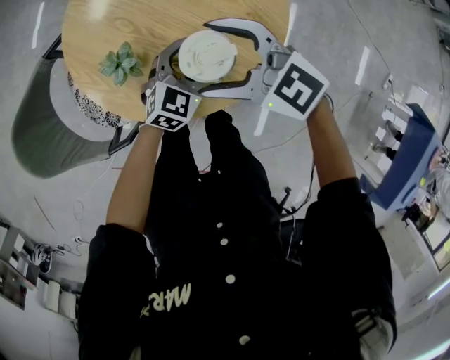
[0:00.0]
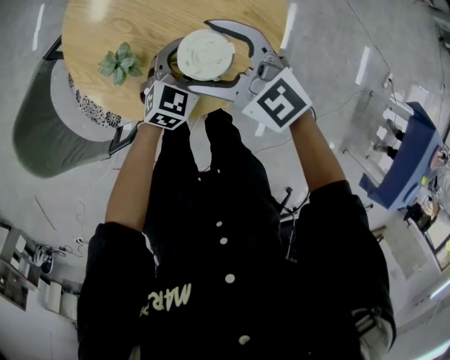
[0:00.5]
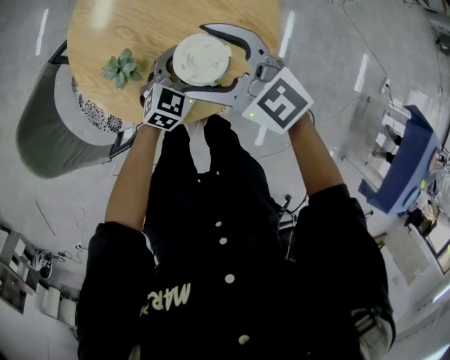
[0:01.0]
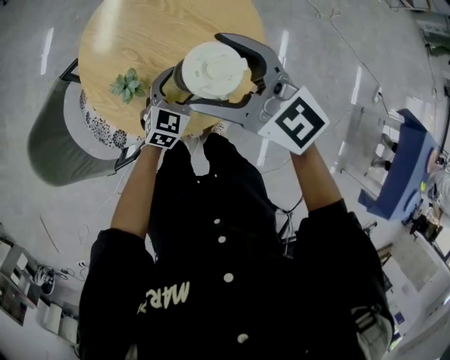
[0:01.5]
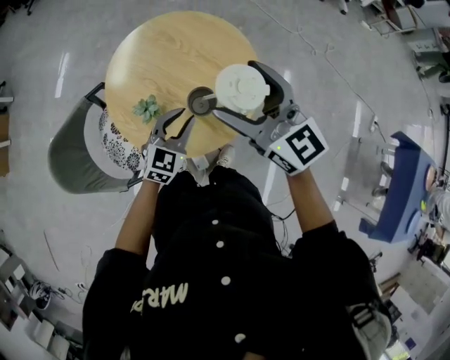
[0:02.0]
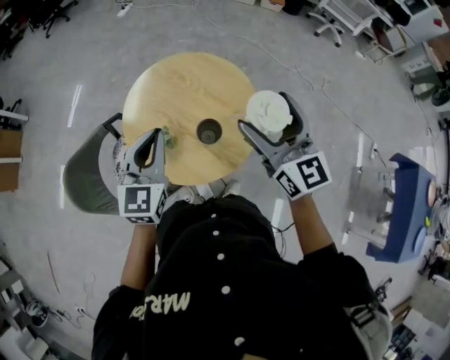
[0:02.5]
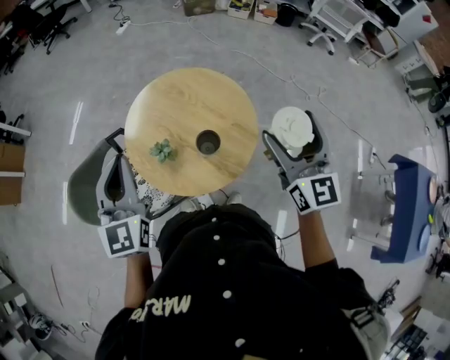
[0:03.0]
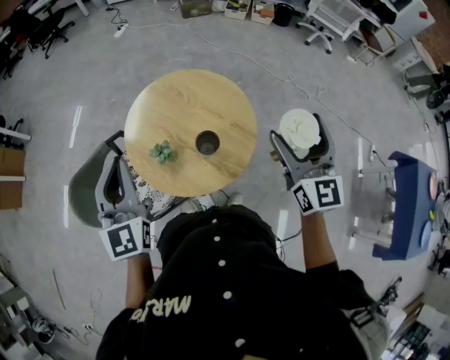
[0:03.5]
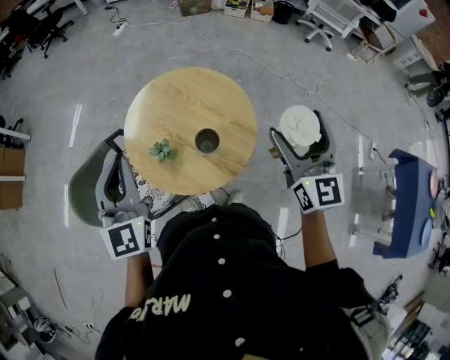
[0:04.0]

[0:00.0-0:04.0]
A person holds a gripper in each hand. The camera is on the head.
0:00.0 to 0:02.0: The two grippers go approximately 20 cm upward. The left gripper closes. The right gripper turns by about 40 degrees.
0:02.0 to 0:04.0: The left gripper goes roughly 35 cm upward and to the left, and changes its angle by roughly 40 degrees; the right gripper travels to the right, upward and backward by approximately 15 cm, and changes its angle by roughly 30 degrees.

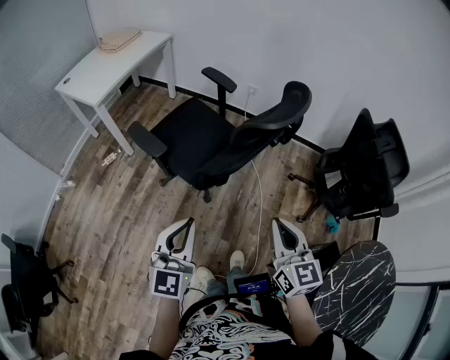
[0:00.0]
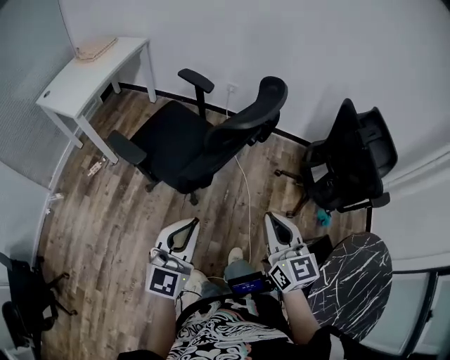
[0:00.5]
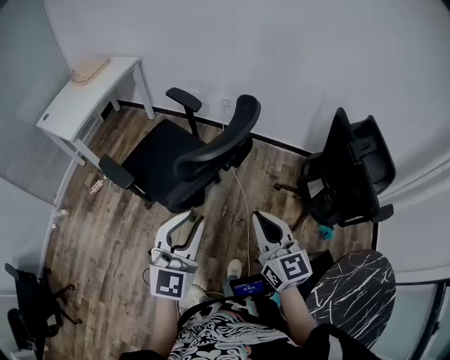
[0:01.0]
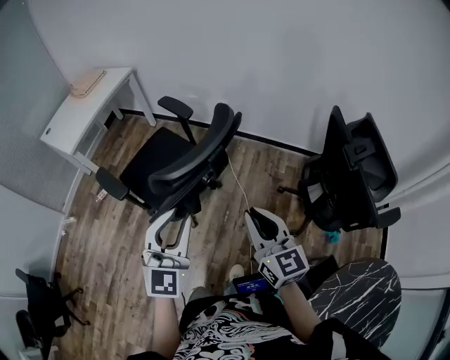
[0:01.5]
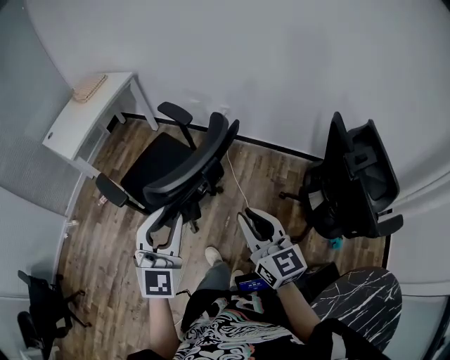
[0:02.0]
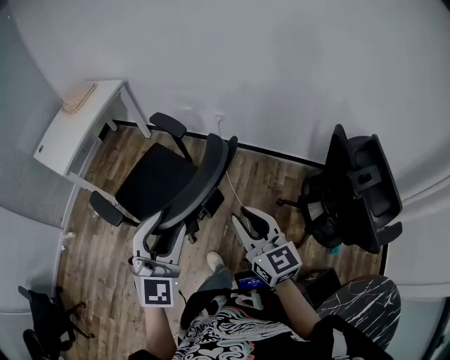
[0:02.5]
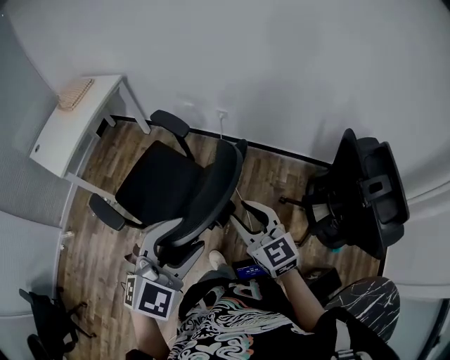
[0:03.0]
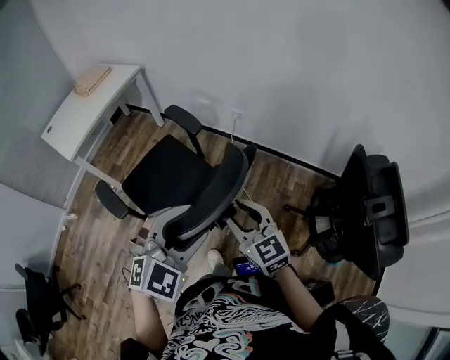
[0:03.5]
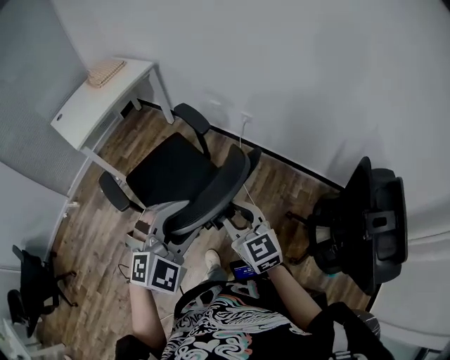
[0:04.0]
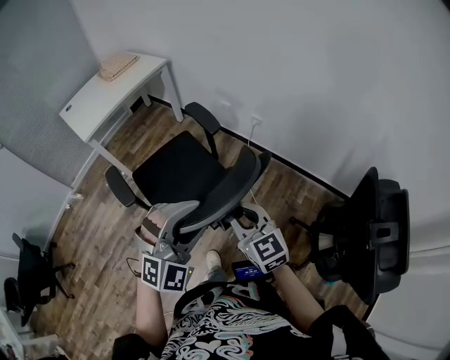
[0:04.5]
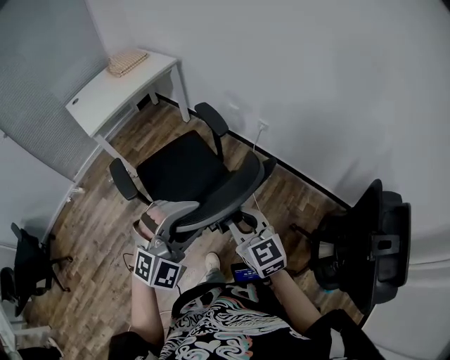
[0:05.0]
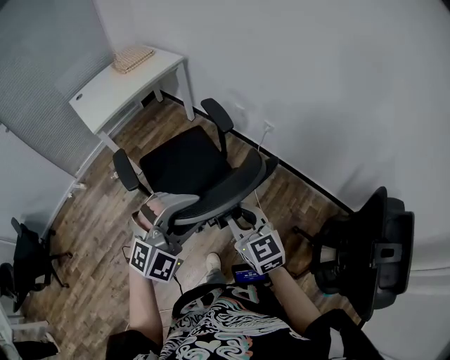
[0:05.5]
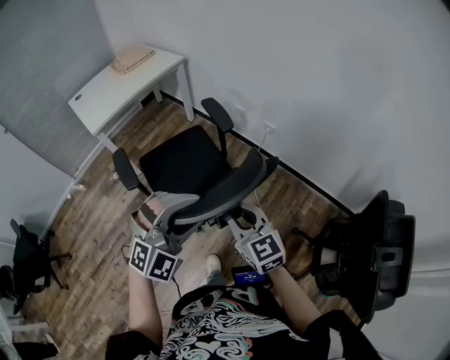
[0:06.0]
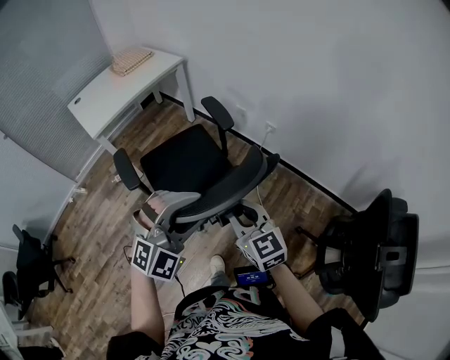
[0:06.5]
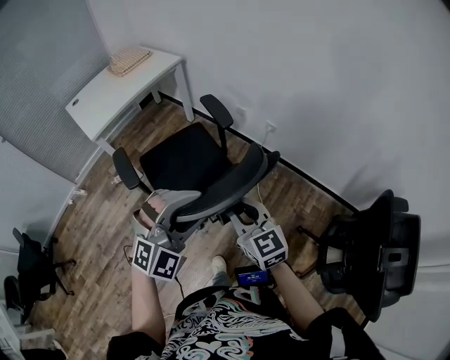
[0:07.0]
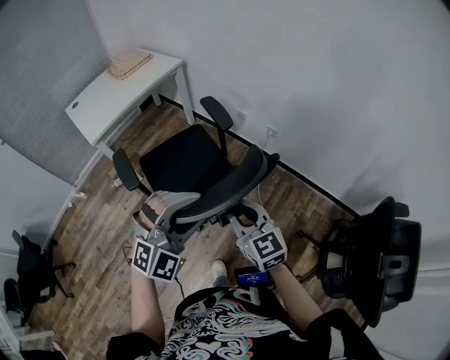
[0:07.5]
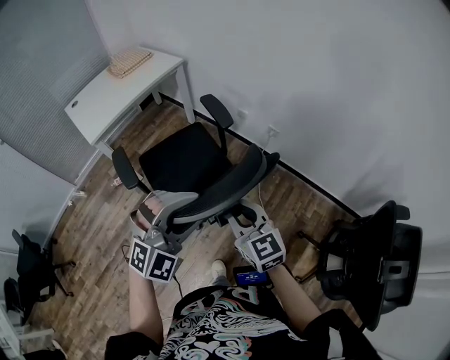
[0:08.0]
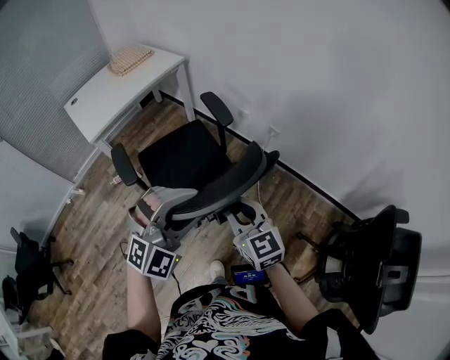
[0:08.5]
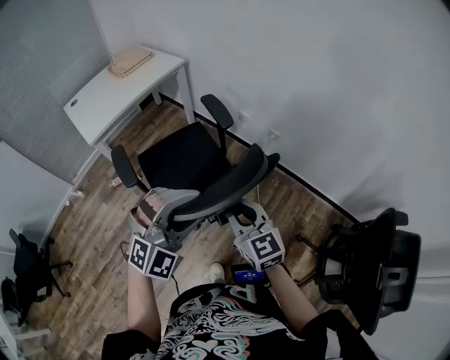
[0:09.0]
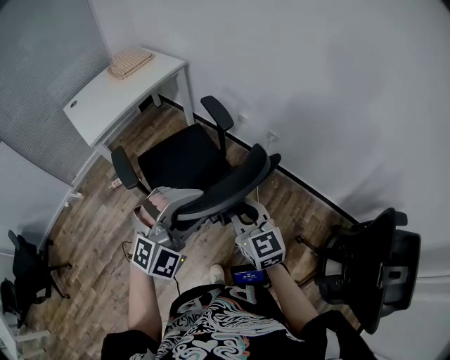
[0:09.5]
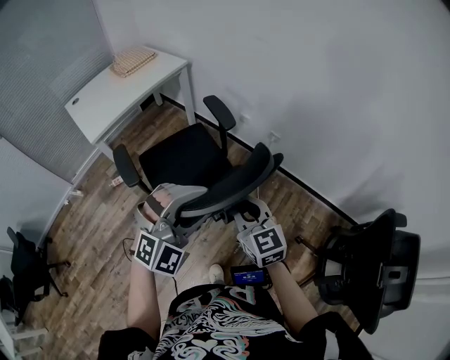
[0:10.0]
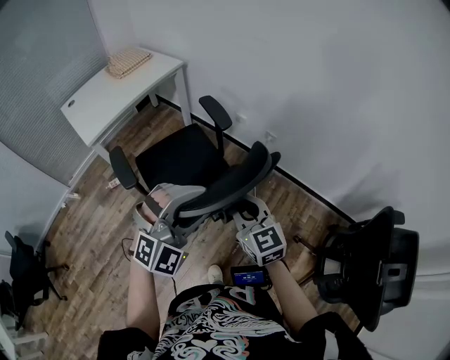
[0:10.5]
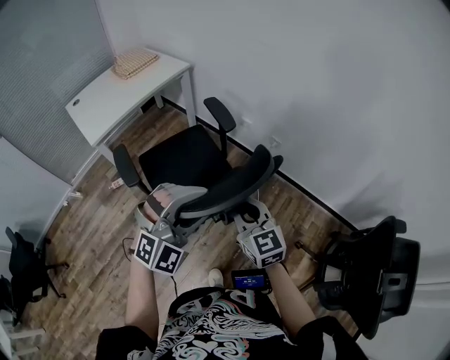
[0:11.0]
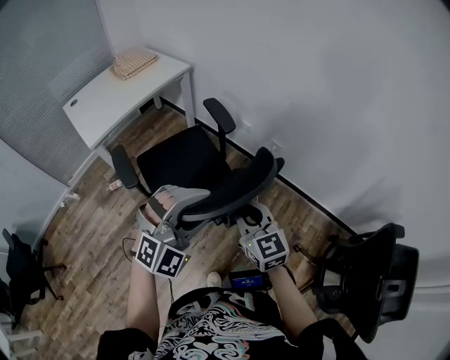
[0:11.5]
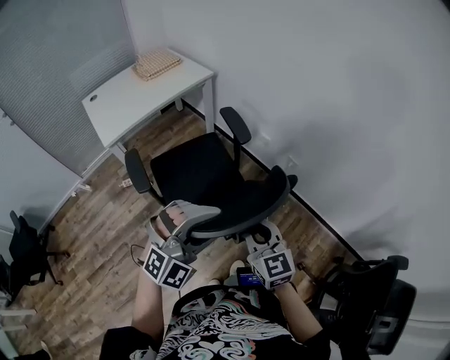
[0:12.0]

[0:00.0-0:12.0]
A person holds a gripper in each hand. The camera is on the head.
0:00.0 to 0:02.0: The right gripper travels forward and to the right by roughly 25 cm. The left gripper is displaced to the right and forward by some 25 cm, rotates about 20 degrees, and opens up.
0:02.0 to 0:04.0: The left gripper moves forward, some 10 cm, and changes its angle by approximately 30 degrees, while the right gripper is displaced forward and to the left by approximately 15 cm, and turns by approximately 20 degrees.
0:04.0 to 0:06.0: The right gripper moves to the left, about 5 cm. Meanwhile the left gripper goes about 5 cm forward.
0:06.0 to 0:08.0: The two grippers go about 5 cm forward.
0:08.0 to 0:10.0: The grippers make only small movements.
0:10.0 to 0:12.0: The two grippers go some 5 cm forward.

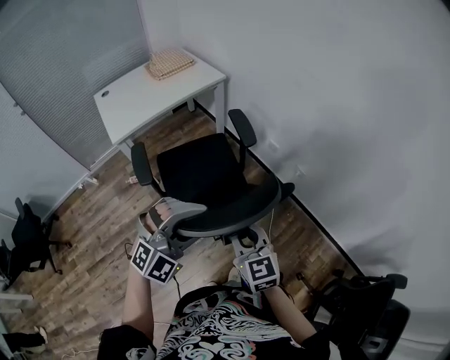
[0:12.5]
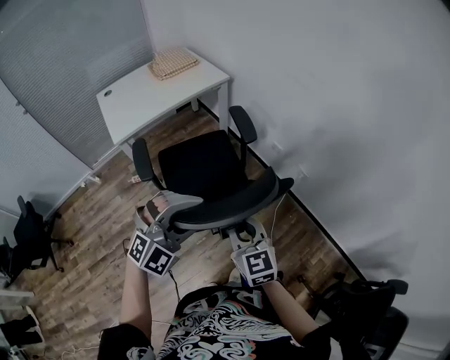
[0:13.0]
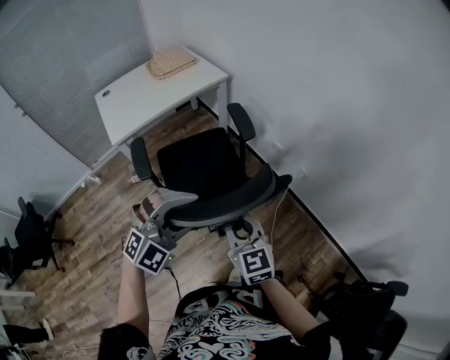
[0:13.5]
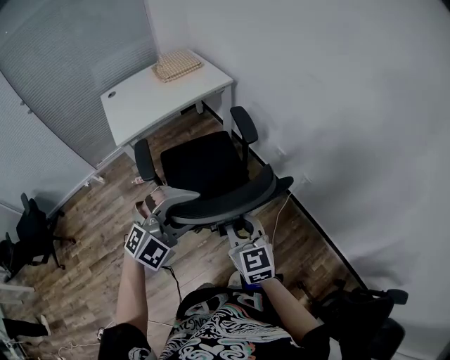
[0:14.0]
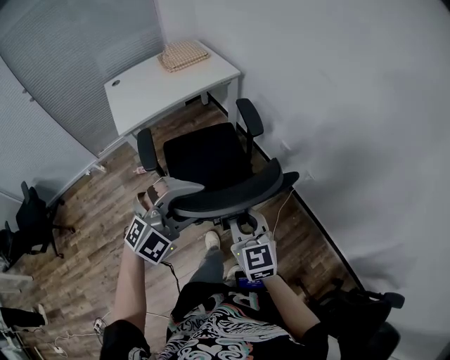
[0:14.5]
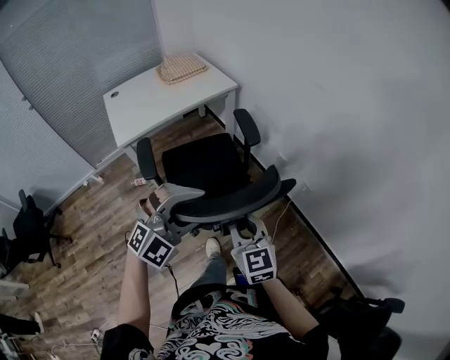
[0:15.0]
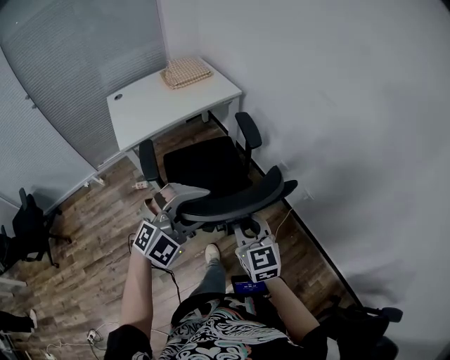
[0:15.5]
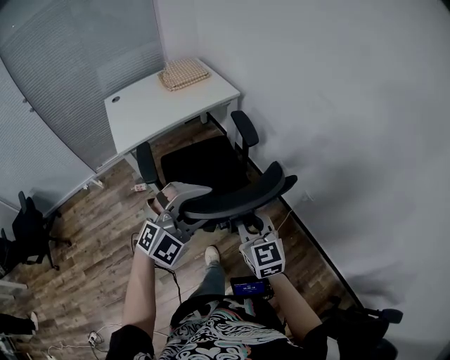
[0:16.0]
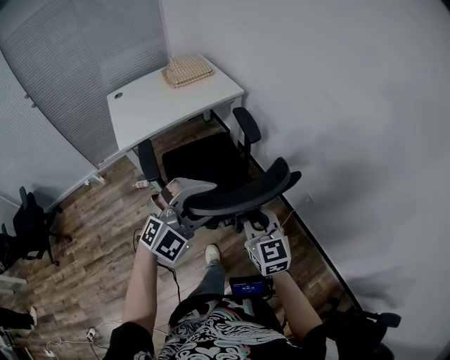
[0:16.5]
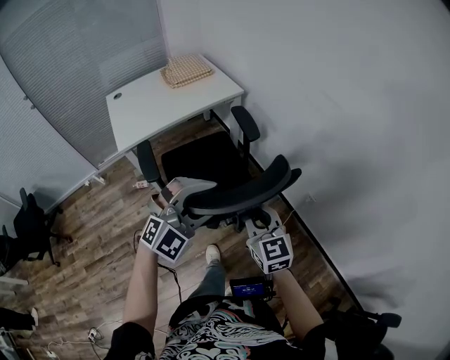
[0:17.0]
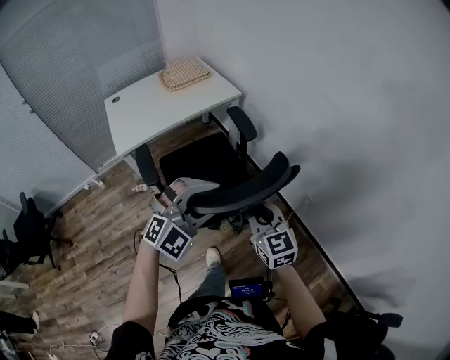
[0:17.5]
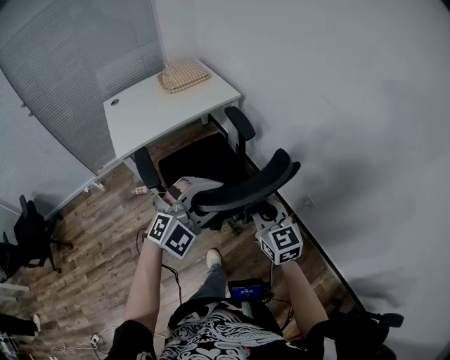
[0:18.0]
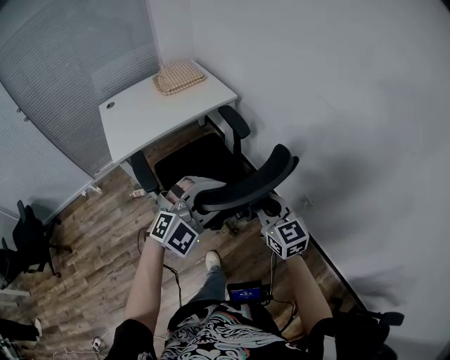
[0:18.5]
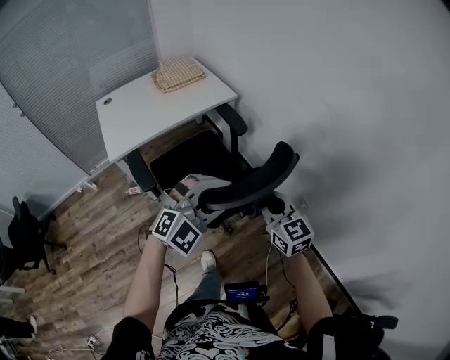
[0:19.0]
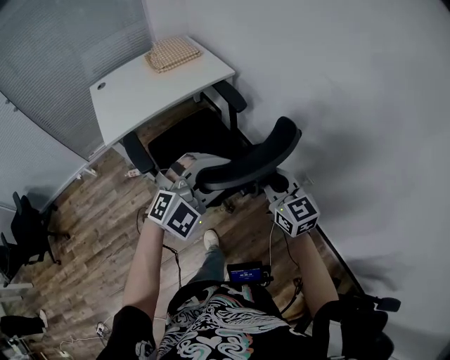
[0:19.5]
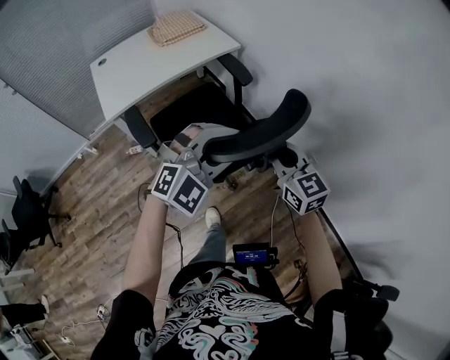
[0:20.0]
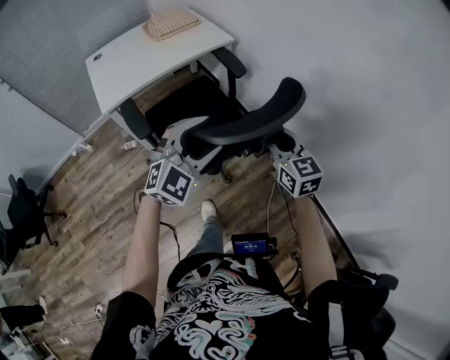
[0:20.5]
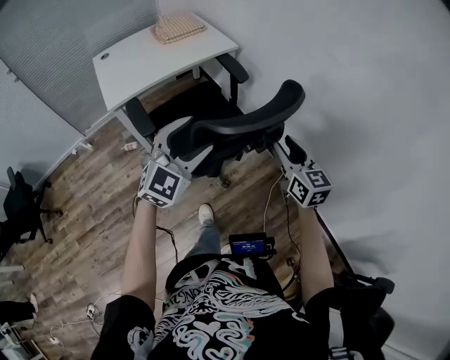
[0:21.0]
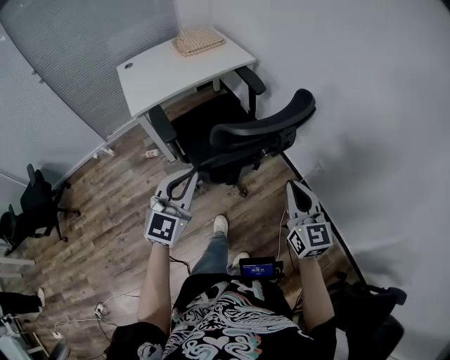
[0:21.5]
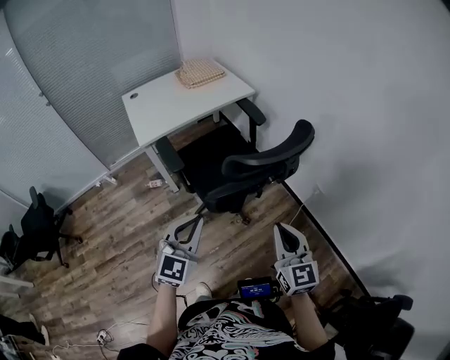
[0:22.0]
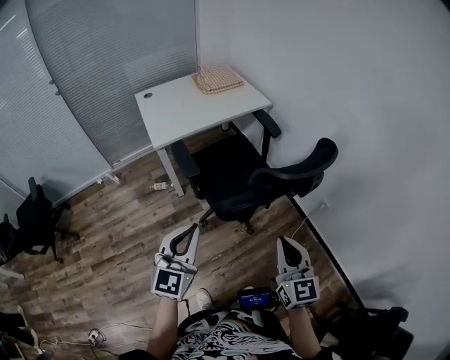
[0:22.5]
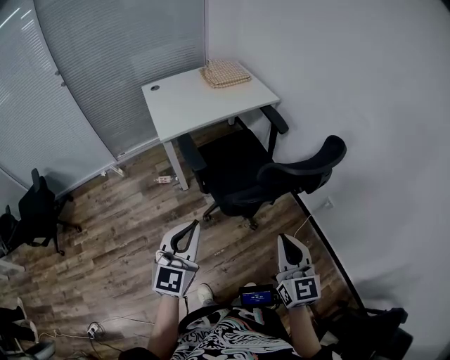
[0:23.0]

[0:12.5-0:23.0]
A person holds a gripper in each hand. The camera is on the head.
0:12.5 to 0:14.5: Both grippers travel together forward, about 5 cm.
0:14.5 to 0:16.5: Both grippers travel together forward, about 10 cm.
0:16.5 to 0:19.0: Both grippers move forward, approximately 10 cm.
0:19.0 to 0:21.0: The left gripper goes approximately 10 cm to the left, changes its angle by approximately 30 degrees, and opens up; the right gripper moves roughly 5 cm, and opens.
0:21.0 to 0:23.0: The left gripper goes approximately 25 cm to the left and backward, changes its angle by approximately 30 degrees, and closes its fingers. The right gripper travels backward and to the left by about 25 cm, and closes.
